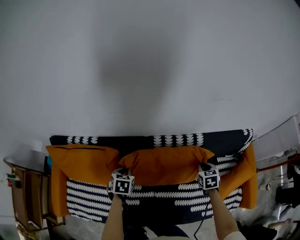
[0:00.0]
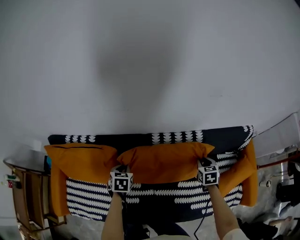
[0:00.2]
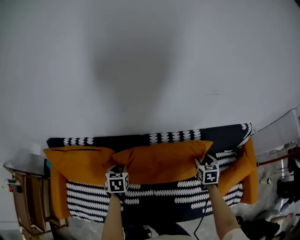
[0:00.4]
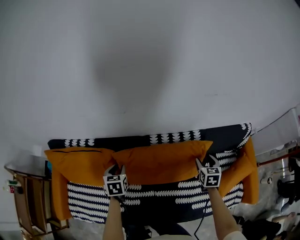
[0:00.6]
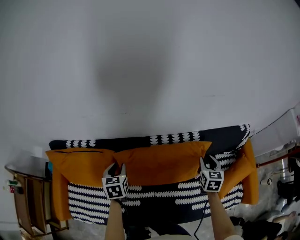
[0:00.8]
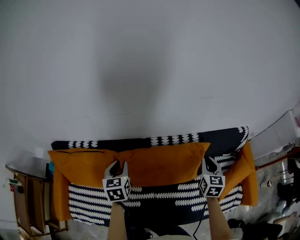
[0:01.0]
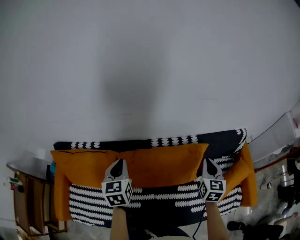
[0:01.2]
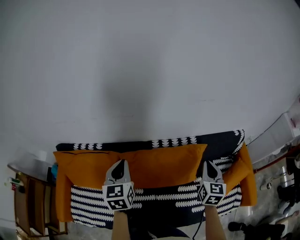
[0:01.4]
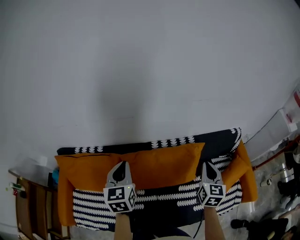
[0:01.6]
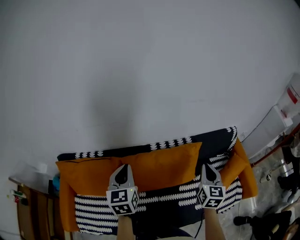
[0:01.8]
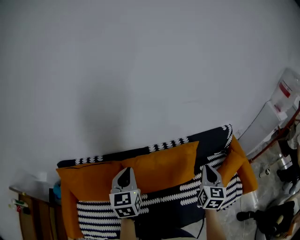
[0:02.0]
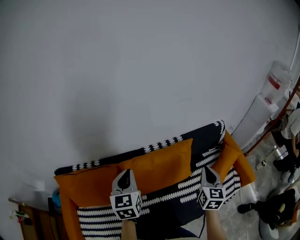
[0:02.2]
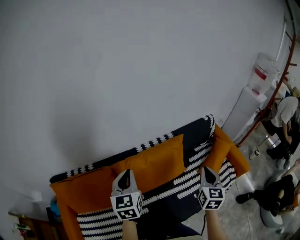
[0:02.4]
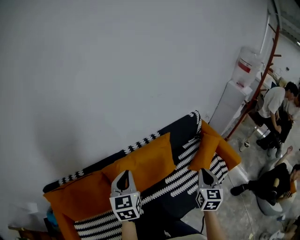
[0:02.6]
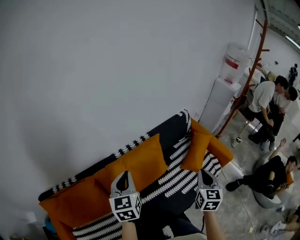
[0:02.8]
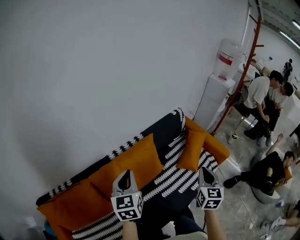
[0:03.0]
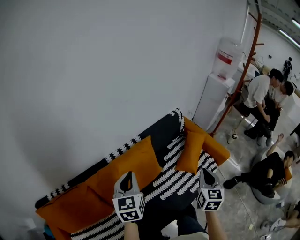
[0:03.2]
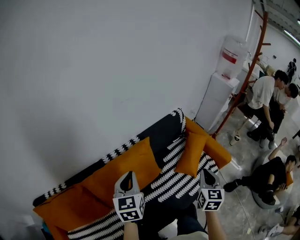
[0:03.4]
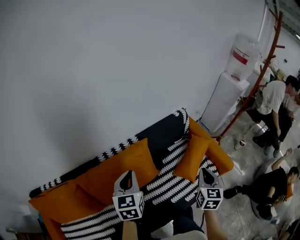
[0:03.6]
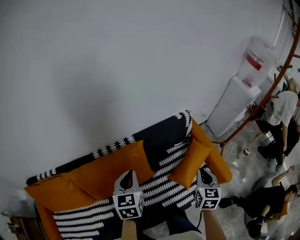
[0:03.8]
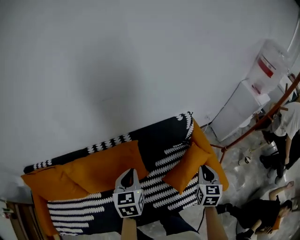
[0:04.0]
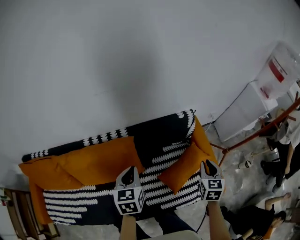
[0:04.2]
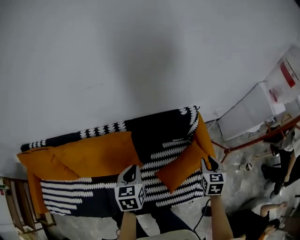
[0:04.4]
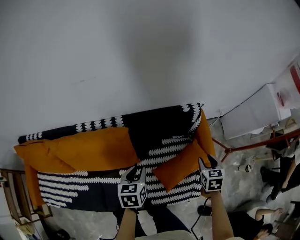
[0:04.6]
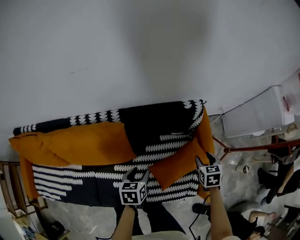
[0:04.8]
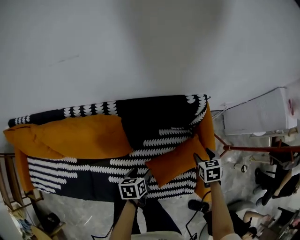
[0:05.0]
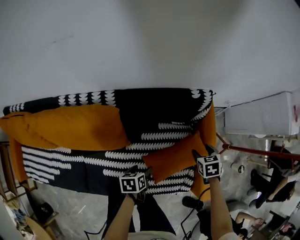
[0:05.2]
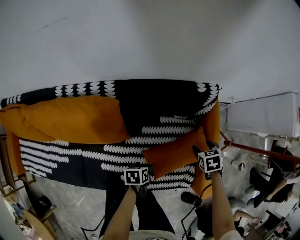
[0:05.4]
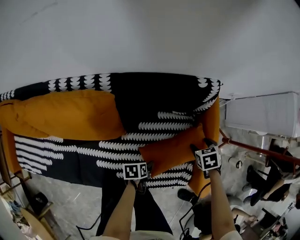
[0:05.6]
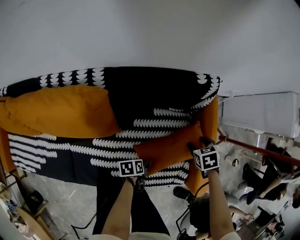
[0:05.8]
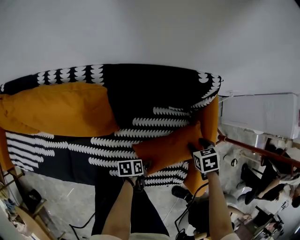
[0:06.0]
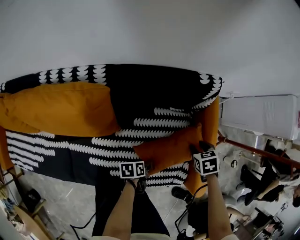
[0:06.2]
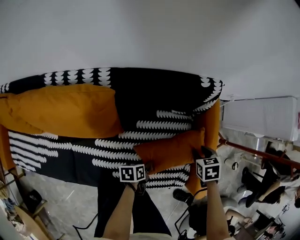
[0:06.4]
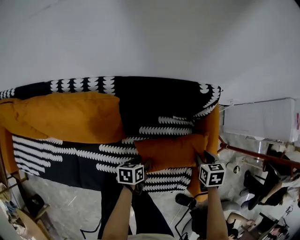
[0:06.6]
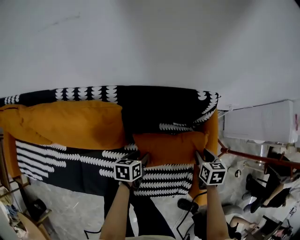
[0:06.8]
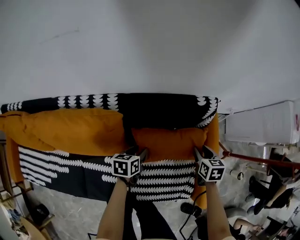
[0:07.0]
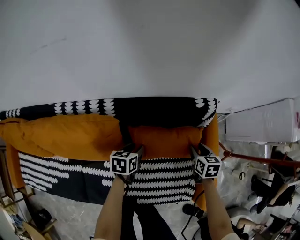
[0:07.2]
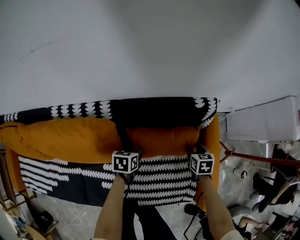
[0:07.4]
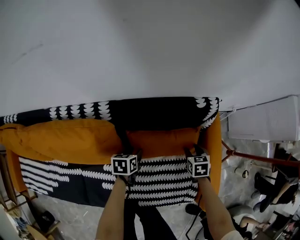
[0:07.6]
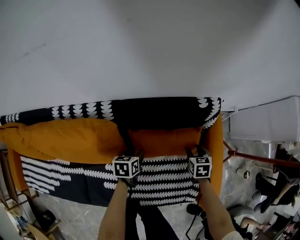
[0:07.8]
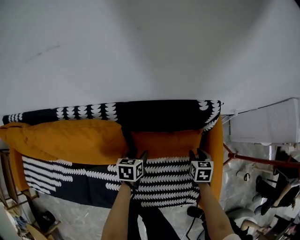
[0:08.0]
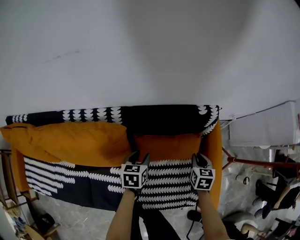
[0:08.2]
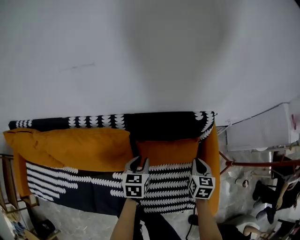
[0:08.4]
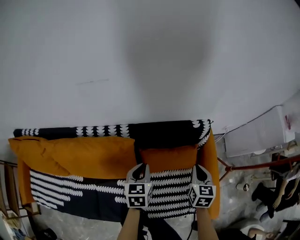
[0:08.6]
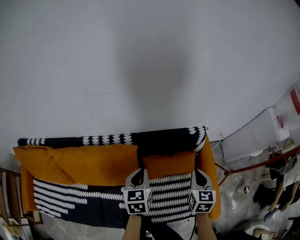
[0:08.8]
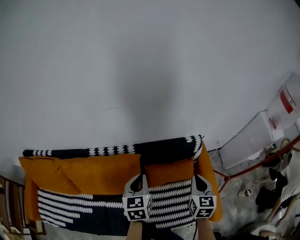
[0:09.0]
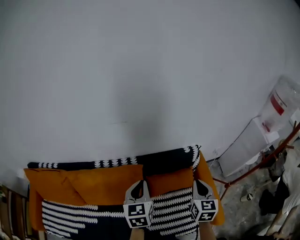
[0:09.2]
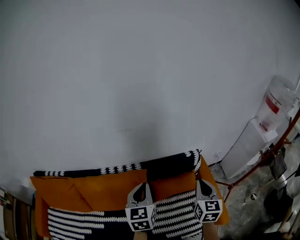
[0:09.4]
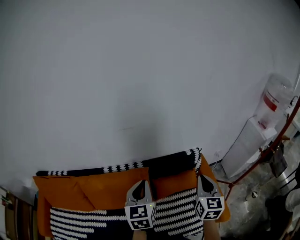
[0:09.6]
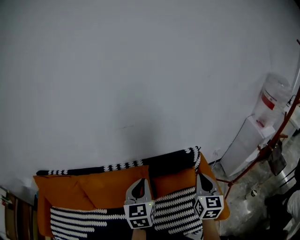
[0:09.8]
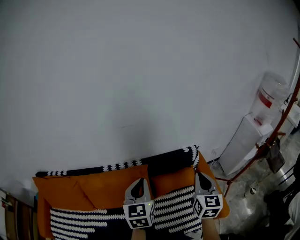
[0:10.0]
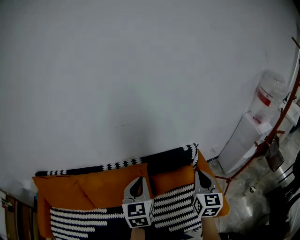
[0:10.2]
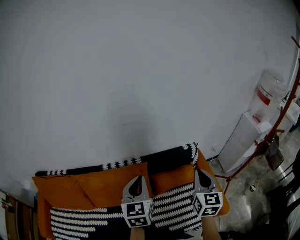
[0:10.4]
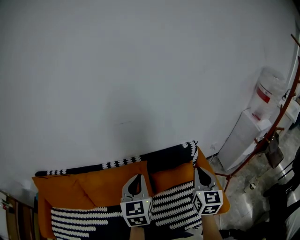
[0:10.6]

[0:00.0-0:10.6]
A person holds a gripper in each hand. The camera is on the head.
0:00.0 to 0:01.6: Both grippers travel together upward, roughly 25 cm. The left gripper tips its fingers upward by roughly 40 degrees; the right gripper tilts its fingers some 40 degrees upward, and opens, then closes once more.
0:01.6 to 0:03.0: The left gripper changes place by approximately 15 cm, and swivels roughly 30 degrees; the right gripper changes place by about 25 cm, and swivels roughly 30 degrees.
0:03.0 to 0:04.6: The left gripper is displaced to the right, downward and forward by about 40 cm, and points its fingers roughly 30 degrees further downward. Meanwhile the right gripper is displaced forward, to the right and downward by roughly 50 cm, angles its fingers downward, by approximately 30 degrees, and opens its fingers.
0:04.6 to 0:06.0: The left gripper goes some 30 cm downward, swivels roughly 50 degrees, and opens its fingers, while the right gripper shifts roughly 20 cm downward, and changes its angle by about 30 degrees.
0:06.0 to 0:07.6: The right gripper moves about 10 cm. Meanwhile the left gripper moves some 25 cm, and swivels roughly 30 degrees.
0:07.6 to 0:09.0: Both grippers move upward, approximately 35 cm. The right gripper points its fingers roughly 40 degrees further upward, and closes up; the left gripper turns by some 40 degrees, and closes its fingers.
0:09.0 to 0:10.6: The two grippers go approximately 20 cm upward and backward.

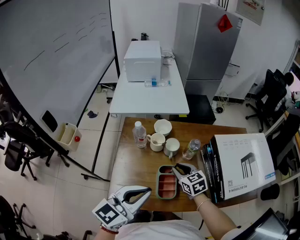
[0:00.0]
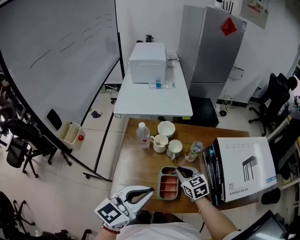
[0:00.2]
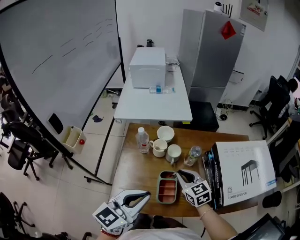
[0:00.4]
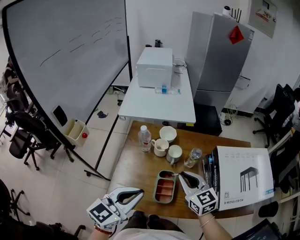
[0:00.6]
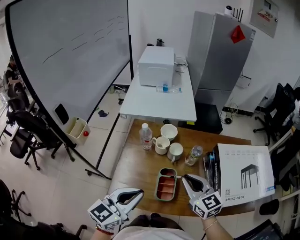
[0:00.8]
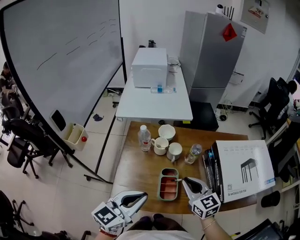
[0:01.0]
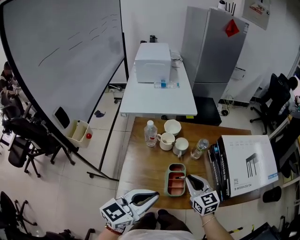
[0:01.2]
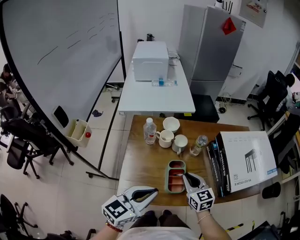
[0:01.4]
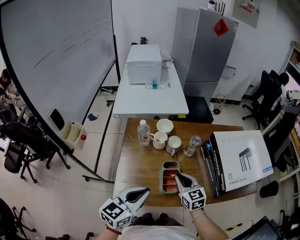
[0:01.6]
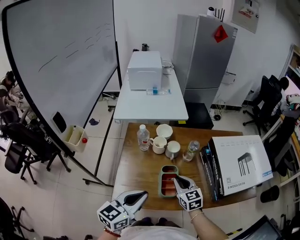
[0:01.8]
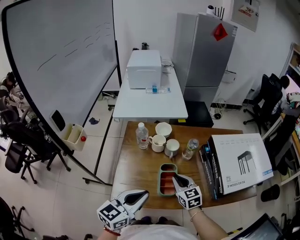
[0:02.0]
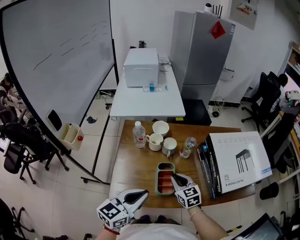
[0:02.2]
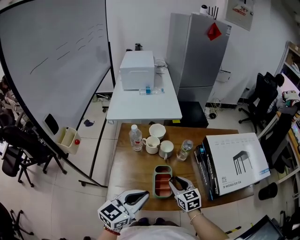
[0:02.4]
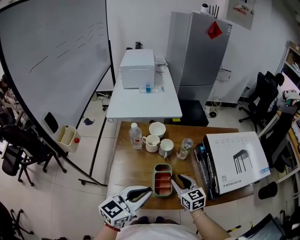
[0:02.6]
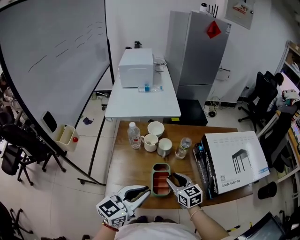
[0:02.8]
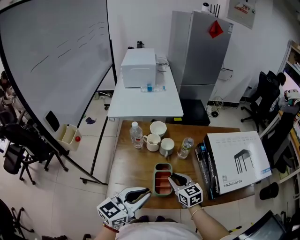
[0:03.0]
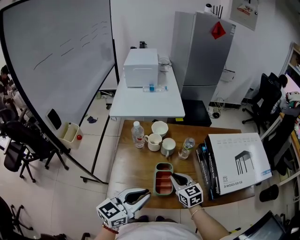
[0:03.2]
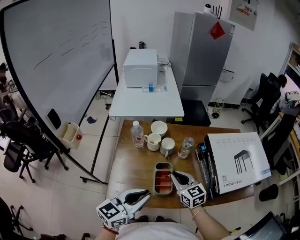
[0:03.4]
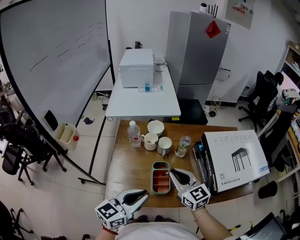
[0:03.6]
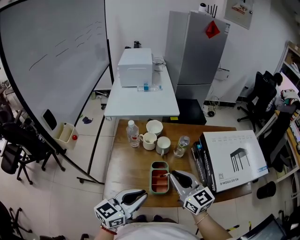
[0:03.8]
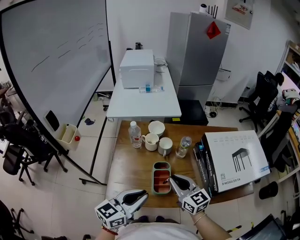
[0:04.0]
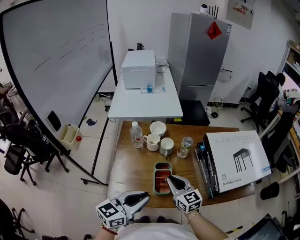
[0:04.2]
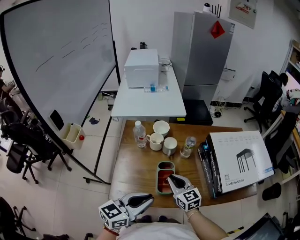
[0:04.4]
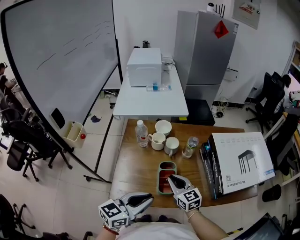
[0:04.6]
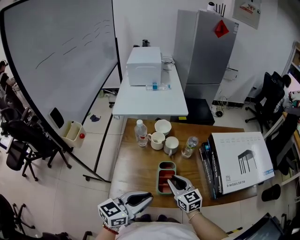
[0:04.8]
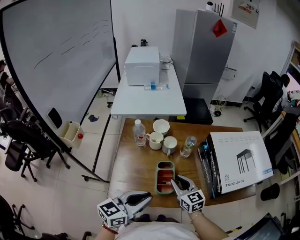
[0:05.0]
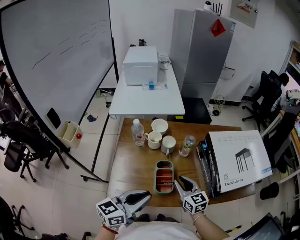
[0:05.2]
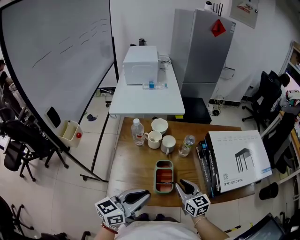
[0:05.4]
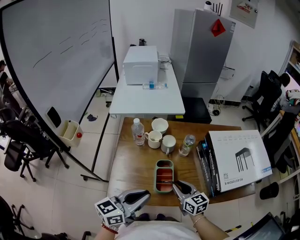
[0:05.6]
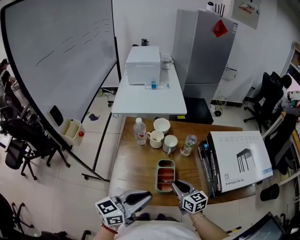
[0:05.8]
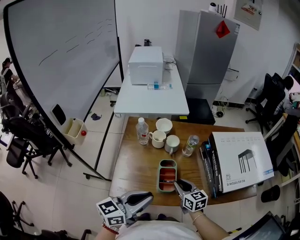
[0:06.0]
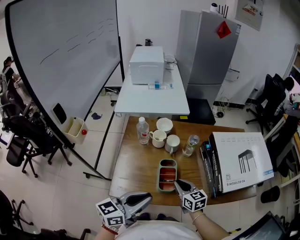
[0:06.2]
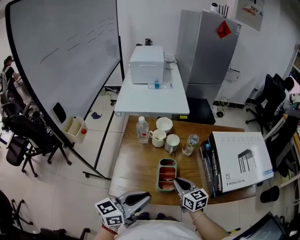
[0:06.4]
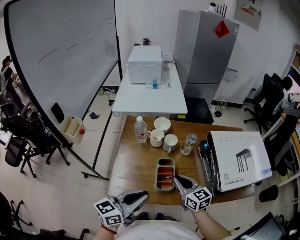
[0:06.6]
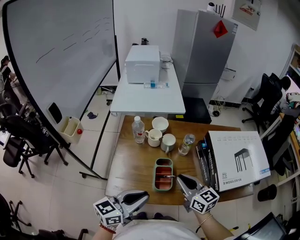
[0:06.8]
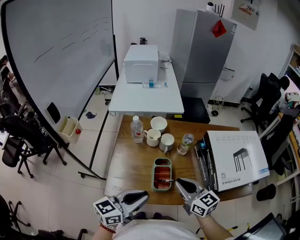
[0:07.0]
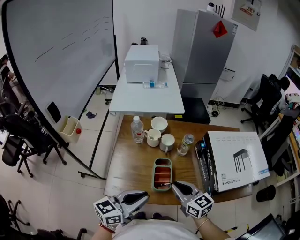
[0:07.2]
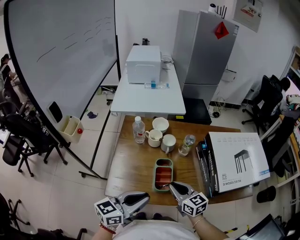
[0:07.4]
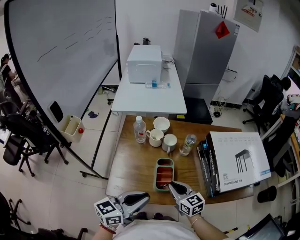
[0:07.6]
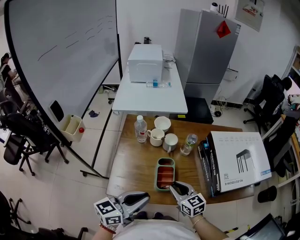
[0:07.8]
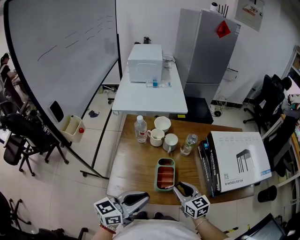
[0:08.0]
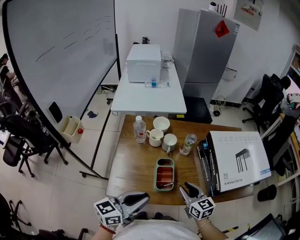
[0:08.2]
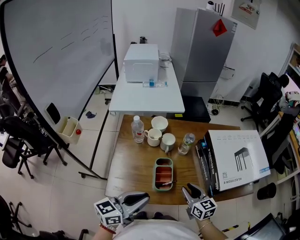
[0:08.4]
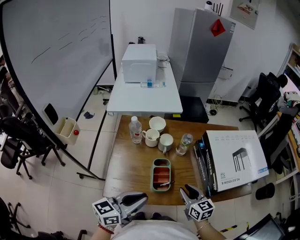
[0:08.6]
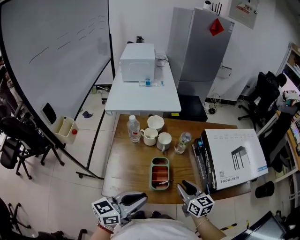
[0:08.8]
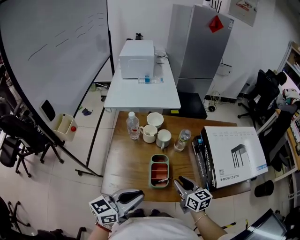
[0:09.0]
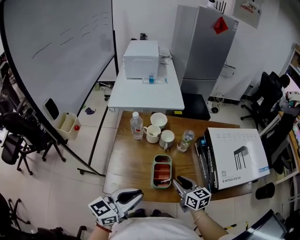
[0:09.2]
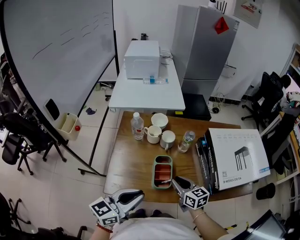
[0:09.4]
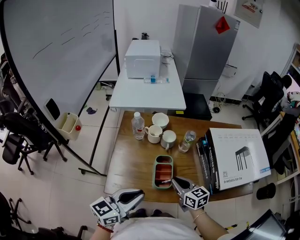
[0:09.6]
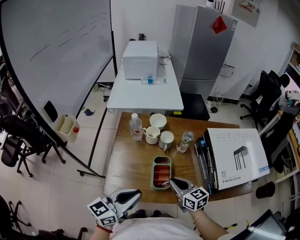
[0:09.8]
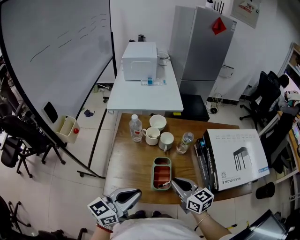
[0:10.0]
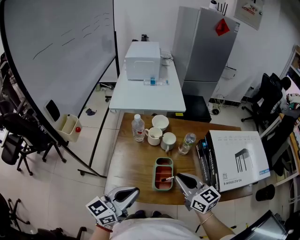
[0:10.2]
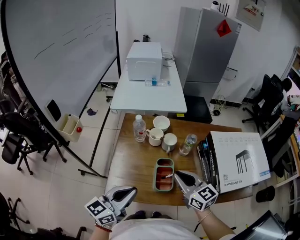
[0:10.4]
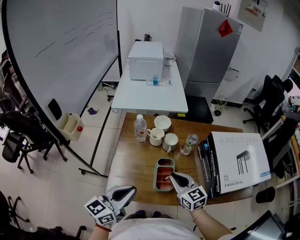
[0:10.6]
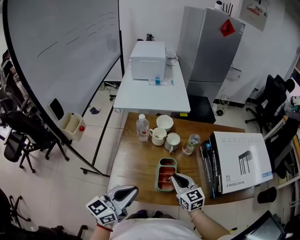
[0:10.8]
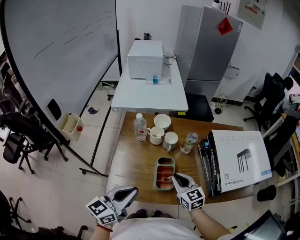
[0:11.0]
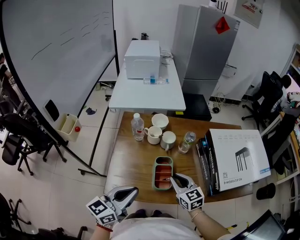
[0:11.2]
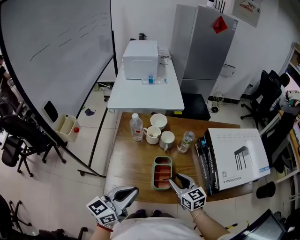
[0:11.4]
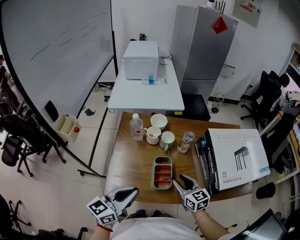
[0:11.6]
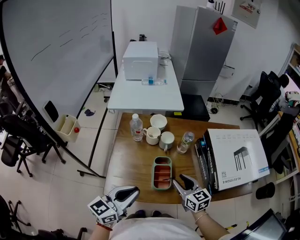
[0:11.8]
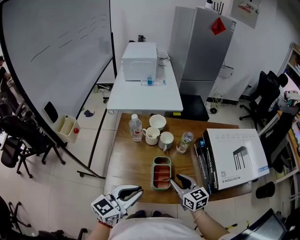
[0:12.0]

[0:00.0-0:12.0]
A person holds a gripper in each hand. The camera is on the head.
0:00.0 to 0:01.6: The left gripper ends up some 5 cm from where it was. Meanwhile the right gripper shifts roughly 10 cm backward, and reaches approximately 15 cm upward, then returns.
0:01.6 to 0:03.0: The grippers move only a little.
0:03.0 to 0:04.4: The right gripper reaches about 15 cm upward, then returns.
0:04.4 to 0:06.0: The right gripper moves about 5 cm.
0:06.0 to 0:07.6: The right gripper moves about 10 cm upward and comes back.
0:07.6 to 0:09.0: The right gripper goes approximately 5 cm to the right.
0:09.0 to 0:10.4: The left gripper is displaced to the left by roughly 5 cm; the right gripper shifts approximately 10 cm upward and to the left.
0:10.4 to 0:12.0: The right gripper goes about 10 cm downward, and opens its fingers.

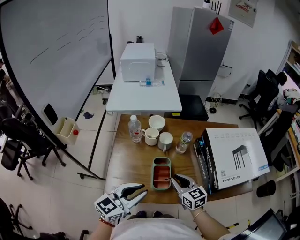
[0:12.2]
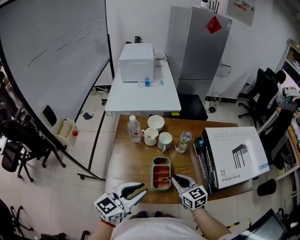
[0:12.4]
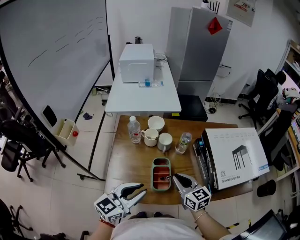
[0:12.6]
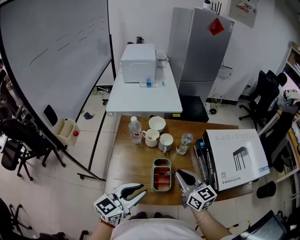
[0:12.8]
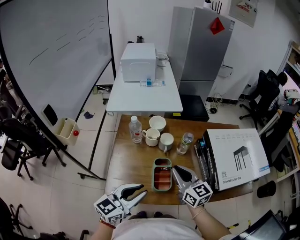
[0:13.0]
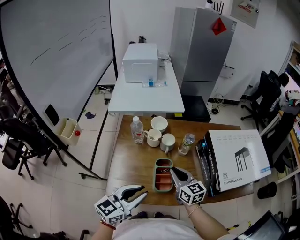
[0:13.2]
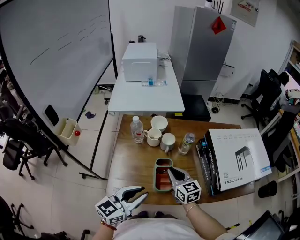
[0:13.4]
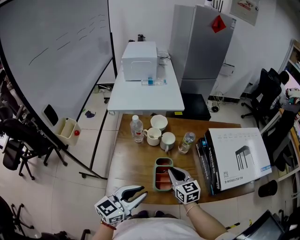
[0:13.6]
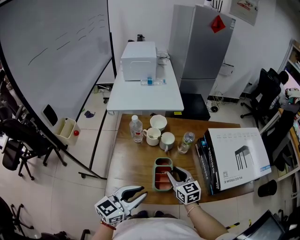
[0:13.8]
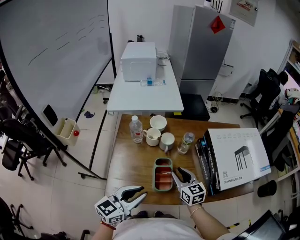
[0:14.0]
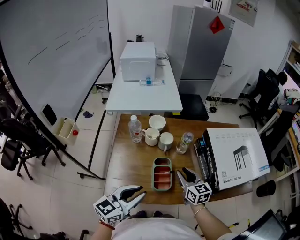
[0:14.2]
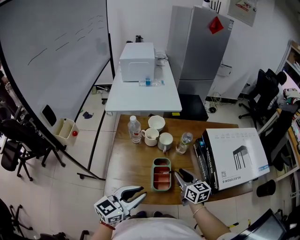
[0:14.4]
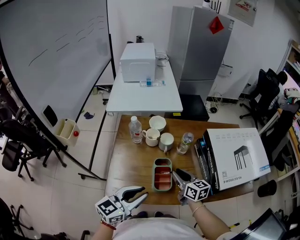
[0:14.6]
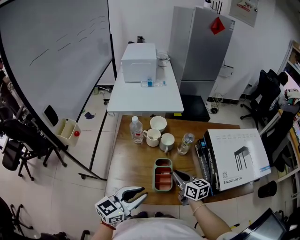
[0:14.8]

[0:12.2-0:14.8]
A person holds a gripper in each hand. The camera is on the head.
0:12.2 to 0:13.4: The right gripper travels upward and back again, approximately 10 cm each way.
0:13.4 to 0:14.8: The right gripper opens, then closes once more.
